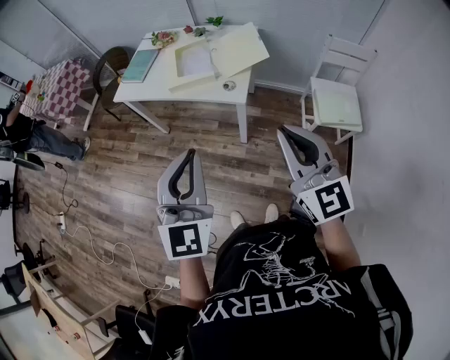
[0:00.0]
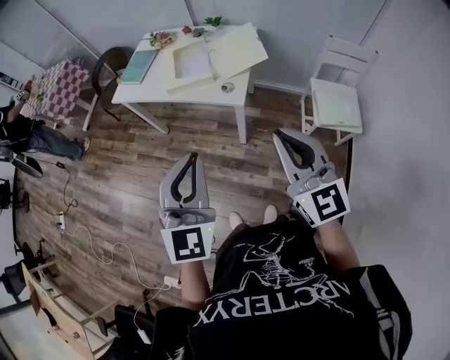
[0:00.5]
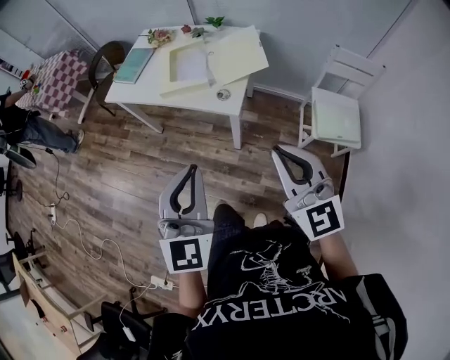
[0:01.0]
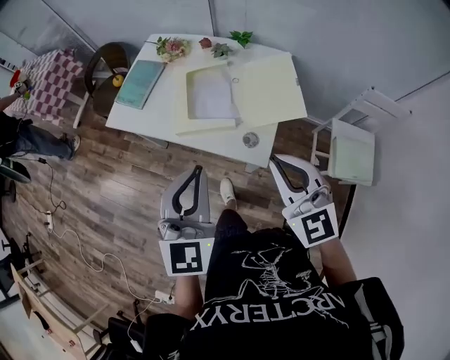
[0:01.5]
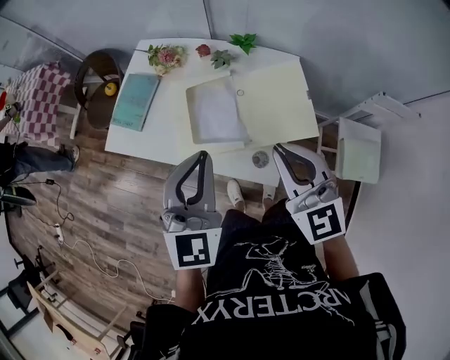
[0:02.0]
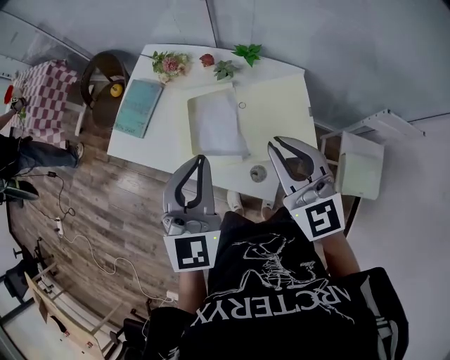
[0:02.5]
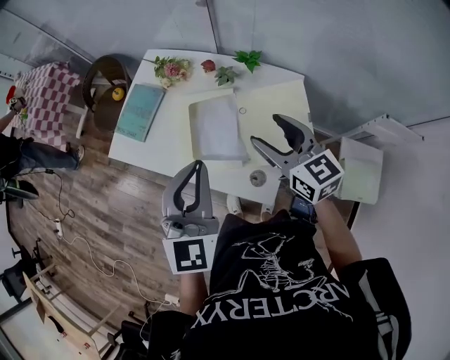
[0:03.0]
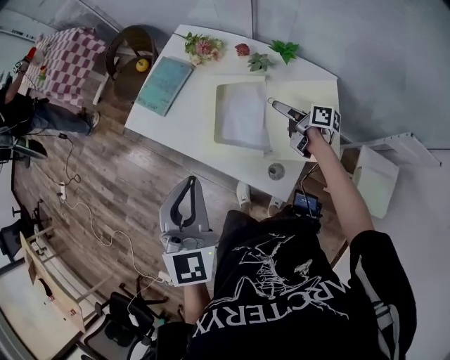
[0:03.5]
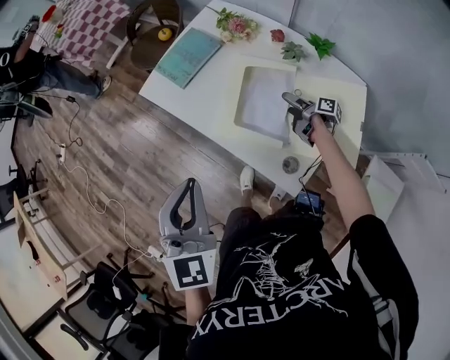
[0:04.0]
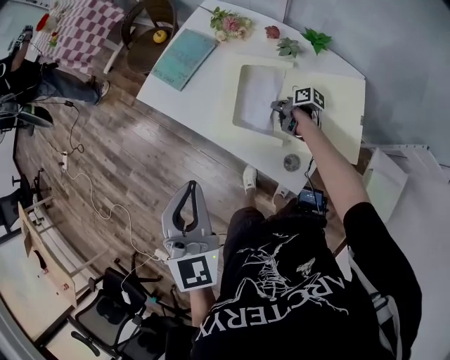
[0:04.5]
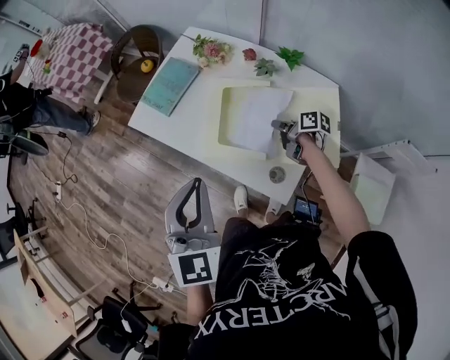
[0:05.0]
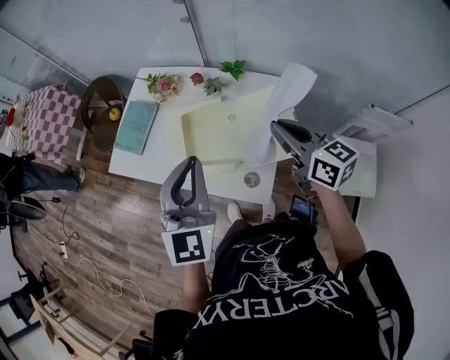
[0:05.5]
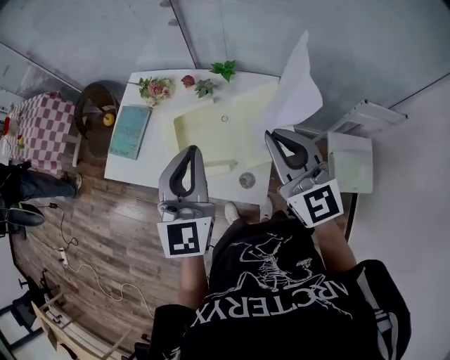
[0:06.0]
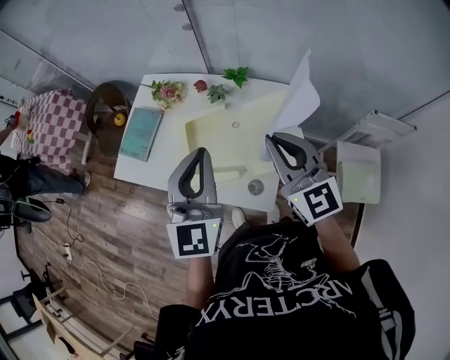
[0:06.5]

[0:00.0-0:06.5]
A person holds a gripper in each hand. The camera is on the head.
0:00.0 to 0:02.0: Both grippers are carried forward, some 40 cm.
0:02.0 to 0:04.5: The right gripper heads downward, covering roughly 40 cm, rotates around the line of its fingers by about 80 degrees, clockwise from behind, and opens and closes again. Meanwhile the left gripper shifts by roughly 15 cm, and rotates approximately 30 degrees.
0:04.5 to 0:06.5: The left gripper changes place by some 20 cm, and changes its angle by roughly 30 degrees; the right gripper heads upward, covering approximately 40 cm, and rotates around the line of its fingers by approximately 80 degrees, counterclockwise from behind.

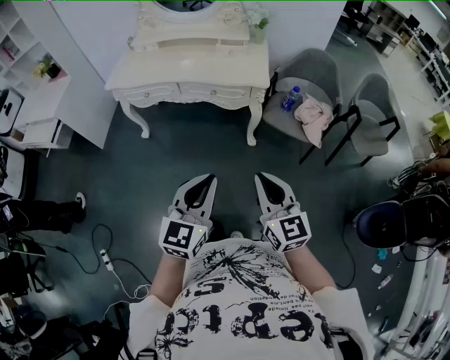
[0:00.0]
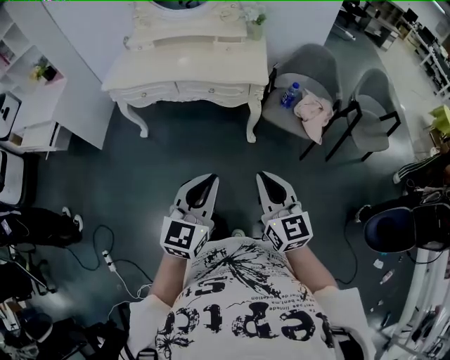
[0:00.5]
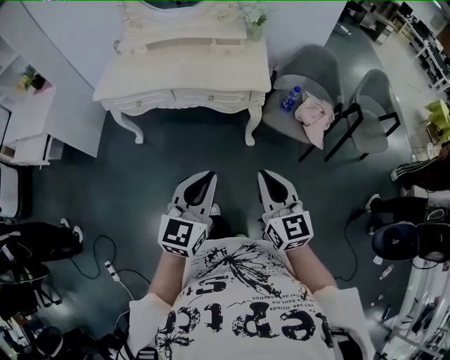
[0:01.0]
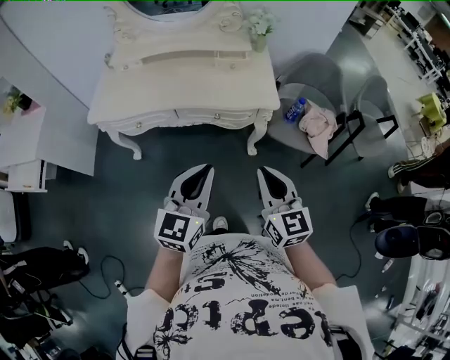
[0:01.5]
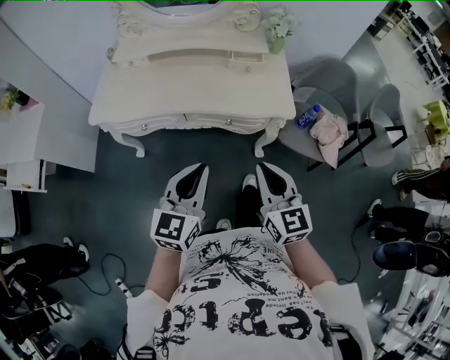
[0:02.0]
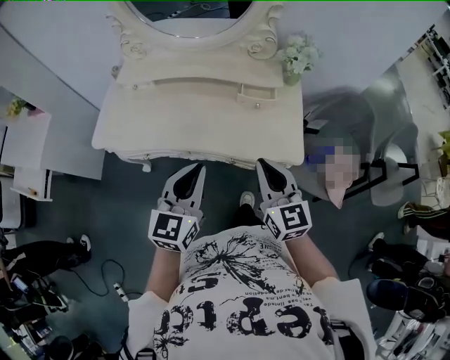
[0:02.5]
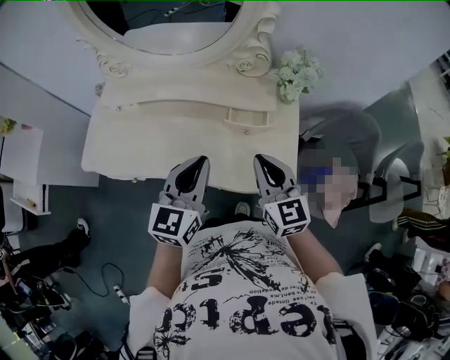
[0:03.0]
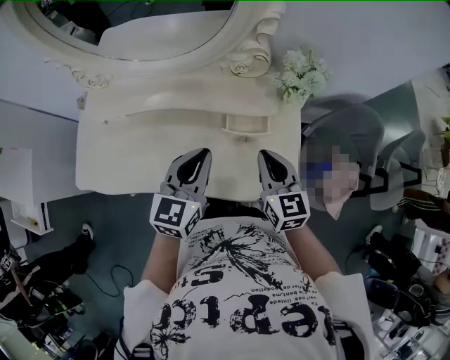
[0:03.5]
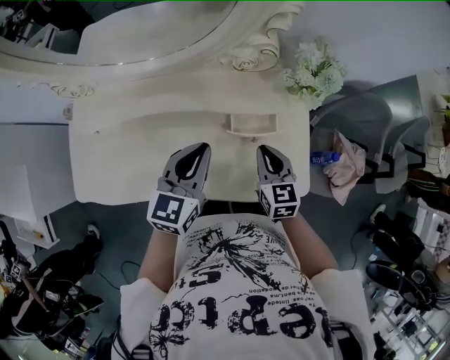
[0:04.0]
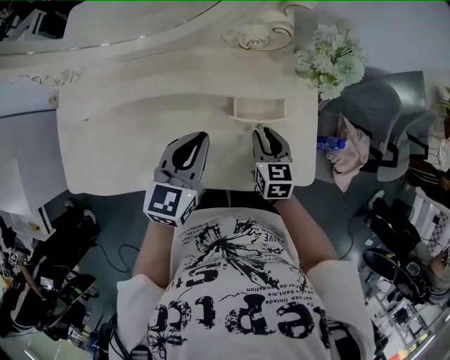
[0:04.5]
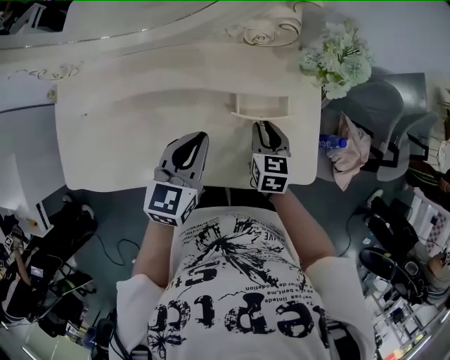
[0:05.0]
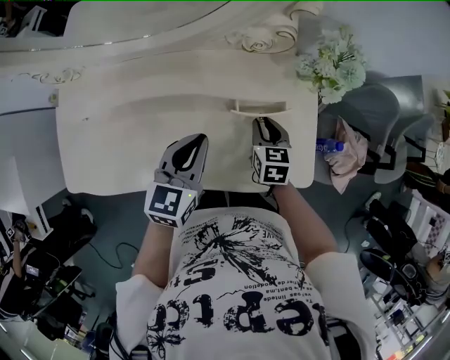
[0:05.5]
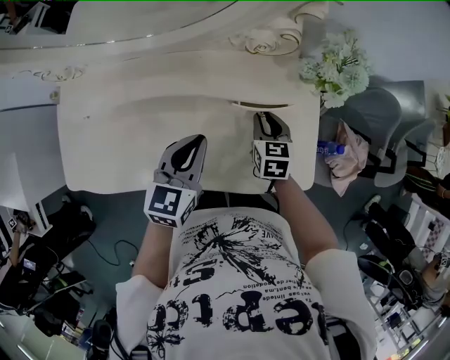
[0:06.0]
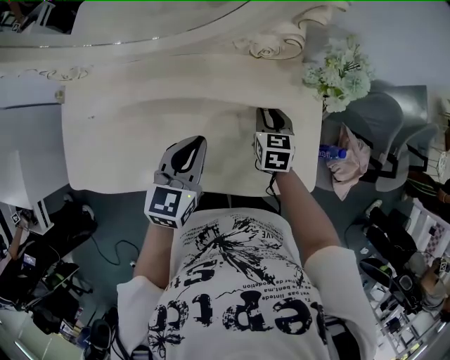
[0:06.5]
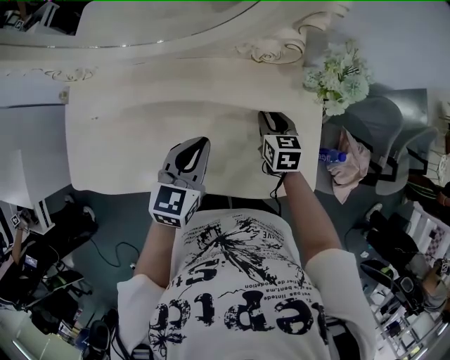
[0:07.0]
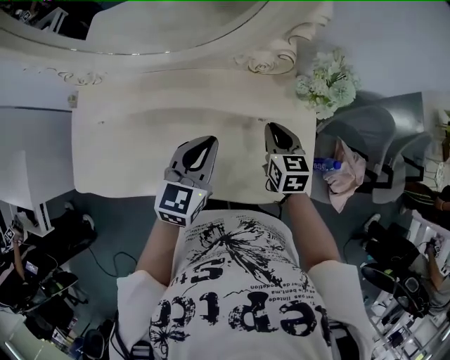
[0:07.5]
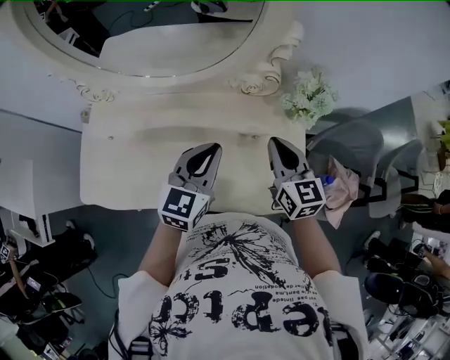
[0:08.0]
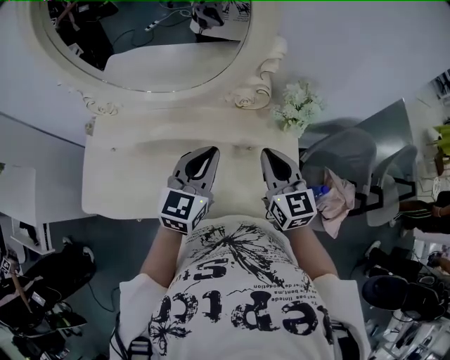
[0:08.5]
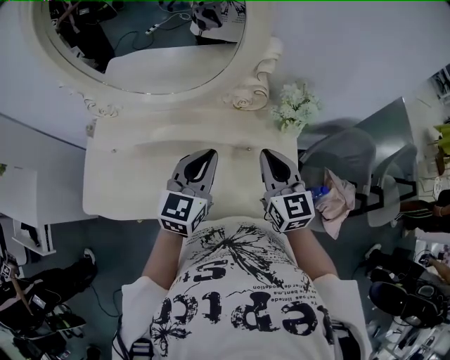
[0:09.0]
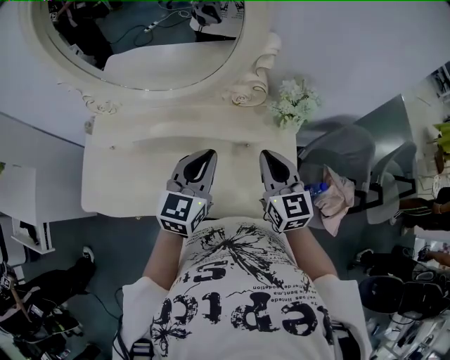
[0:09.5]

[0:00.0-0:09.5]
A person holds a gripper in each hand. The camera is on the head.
0:00.0 to 0:02.0: The grippers both shift forward and to the left by approximately 35 cm.
0:02.0 to 0:04.0: The two grippers travel together, forward, some 50 cm. The right gripper changes its angle by some 20 degrees.
0:04.0 to 0:05.5: The grippers both shift downward by some 5 cm.
0:05.5 to 0:07.5: The right gripper goes approximately 10 cm upward.
0:07.5 to 0:09.5: The left gripper shifts roughly 10 cm upward. Meanwhile the right gripper shifts roughly 15 cm upward, and rotates approximately 20 degrees.

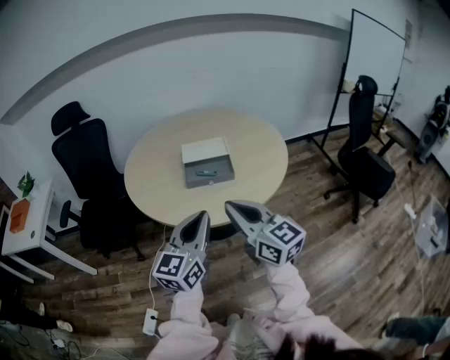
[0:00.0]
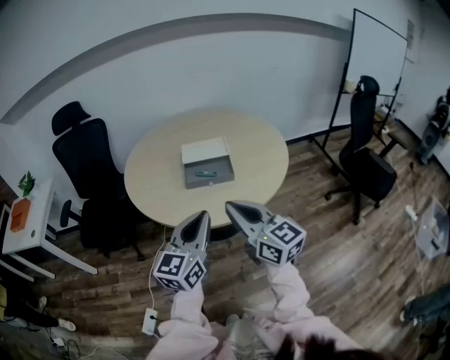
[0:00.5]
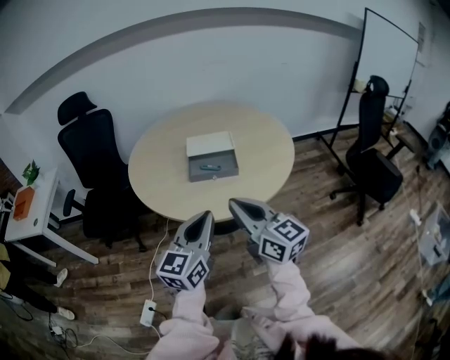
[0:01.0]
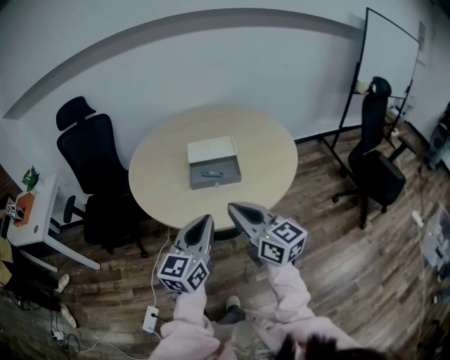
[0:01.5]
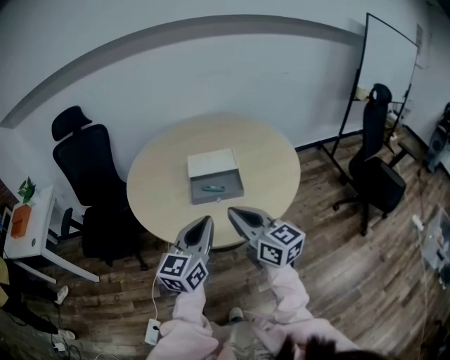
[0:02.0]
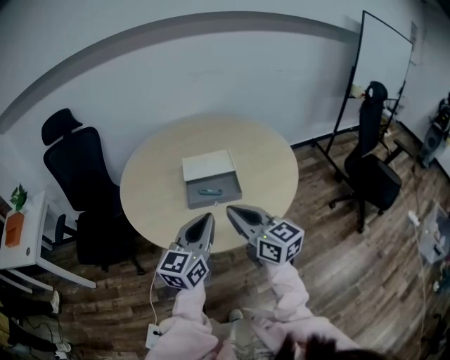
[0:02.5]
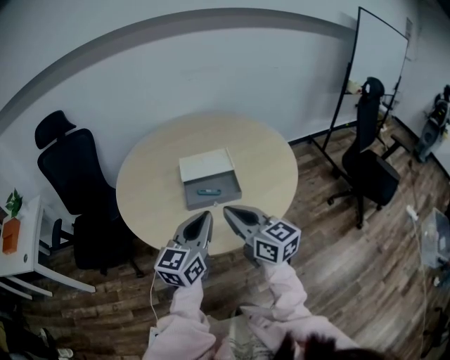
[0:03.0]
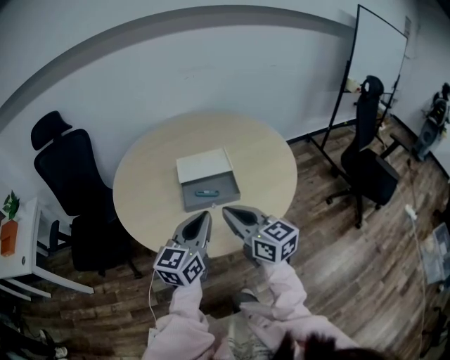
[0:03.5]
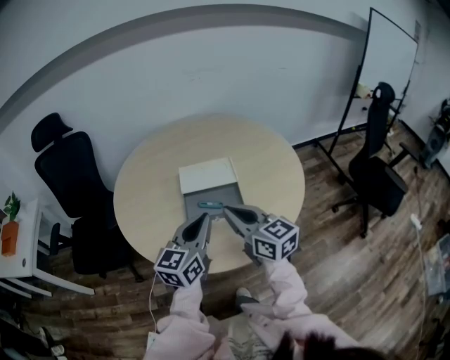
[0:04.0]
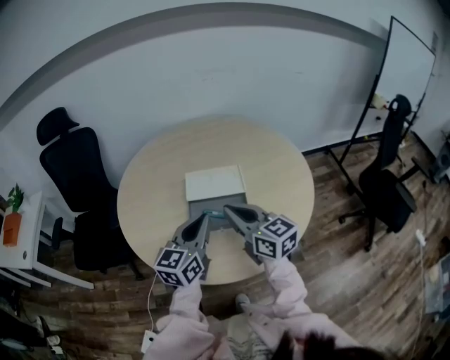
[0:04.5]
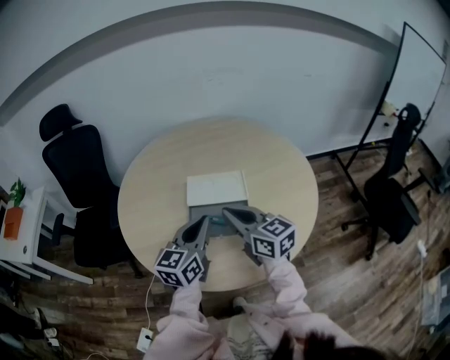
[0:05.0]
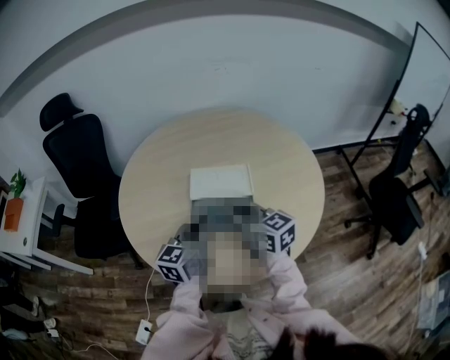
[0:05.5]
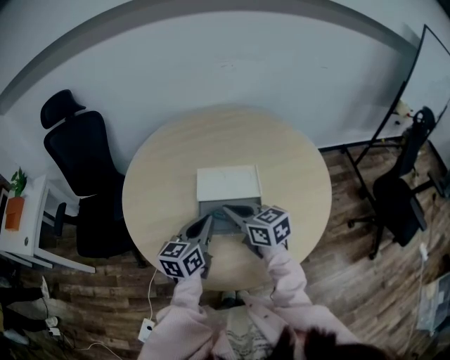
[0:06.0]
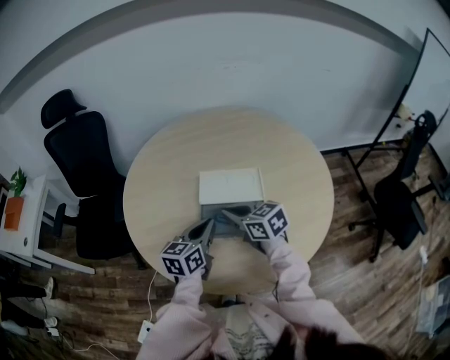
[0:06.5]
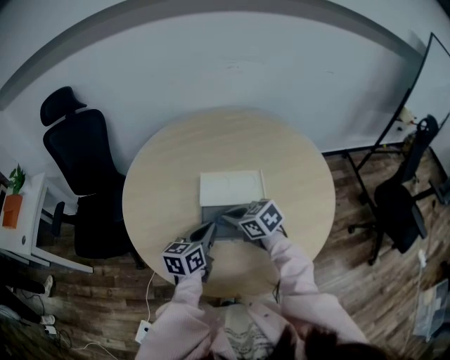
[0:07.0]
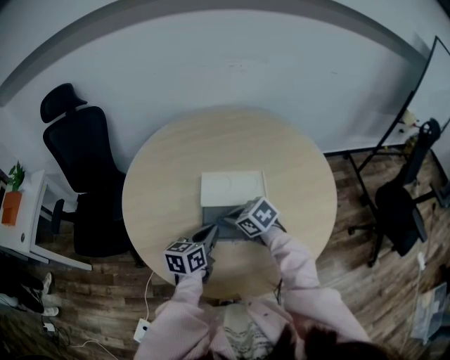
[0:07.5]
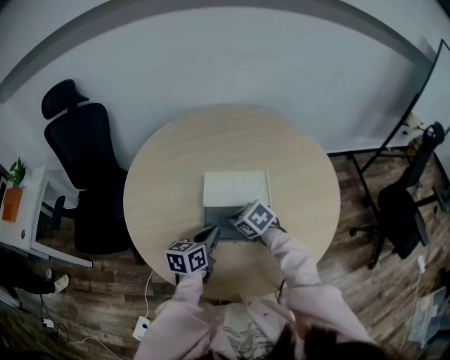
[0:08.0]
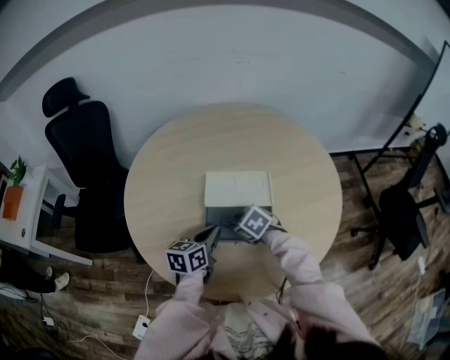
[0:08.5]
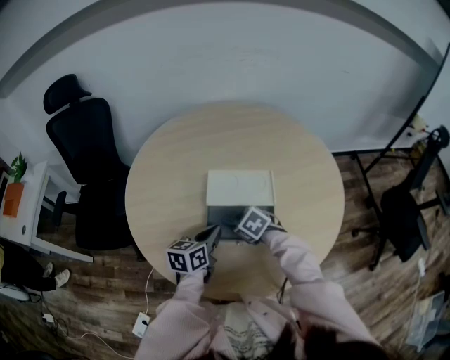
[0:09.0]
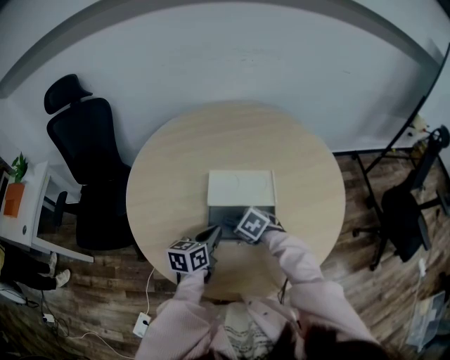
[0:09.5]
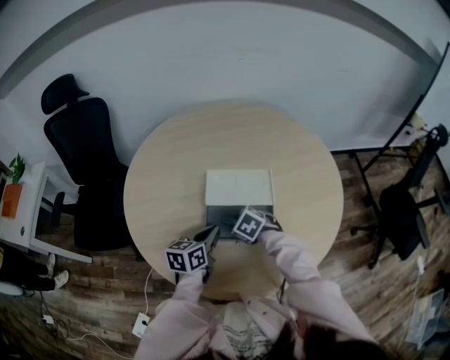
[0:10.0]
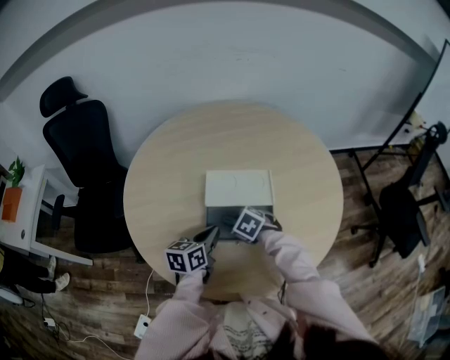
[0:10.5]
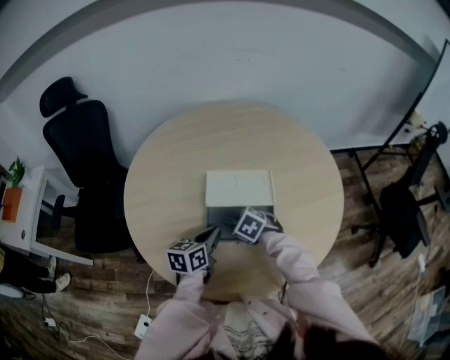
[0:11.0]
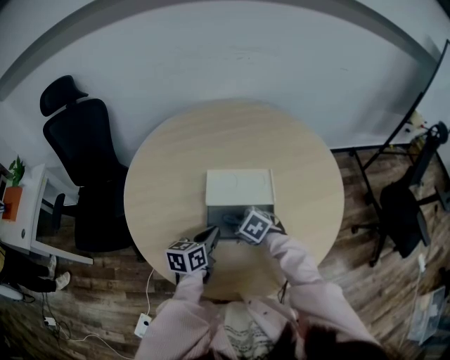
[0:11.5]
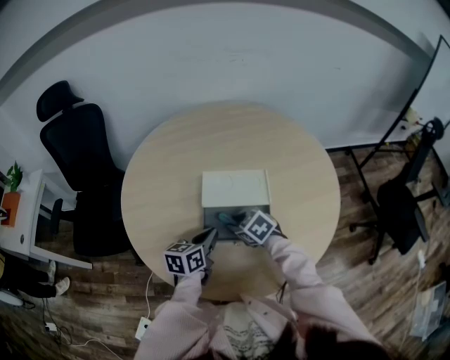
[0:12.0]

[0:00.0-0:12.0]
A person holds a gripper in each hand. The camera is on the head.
0:00.0 to 0:02.0: Both grippers move forward, approximately 10 cm.
0:02.0 to 0:04.0: The two grippers go about 15 cm forward.
0:04.0 to 0:06.0: Both grippers move forward and downward, approximately 15 cm. The right gripper swivels about 20 degrees.
0:06.0 to 0:08.0: The left gripper shifts about 10 cm downward. The right gripper heads downward, covering about 15 cm, and points its fingers about 30 degrees further downward.
0:08.0 to 0:10.0: The right gripper opens up.
0:10.0 to 0:12.0: The grippers move only a little.
